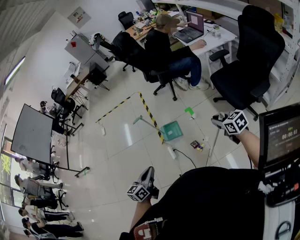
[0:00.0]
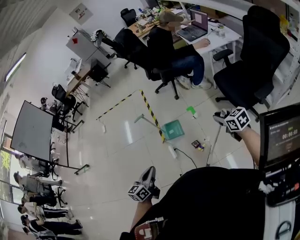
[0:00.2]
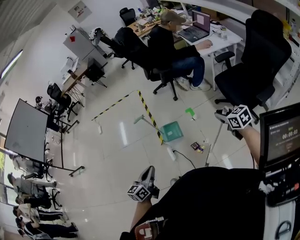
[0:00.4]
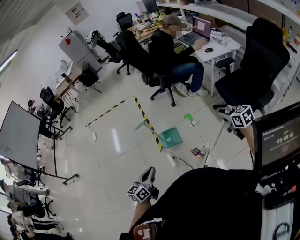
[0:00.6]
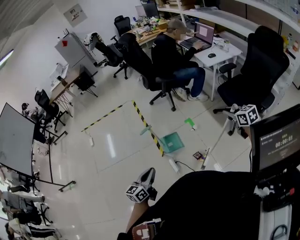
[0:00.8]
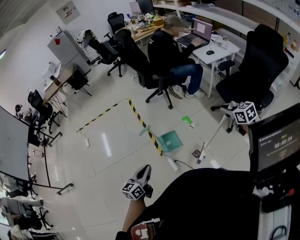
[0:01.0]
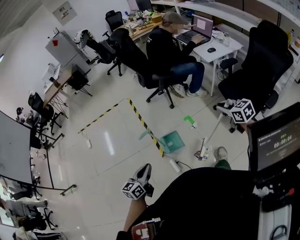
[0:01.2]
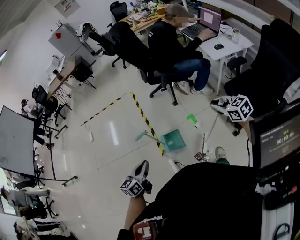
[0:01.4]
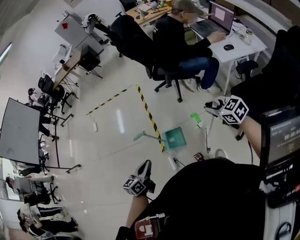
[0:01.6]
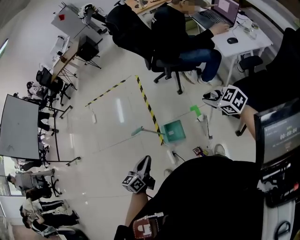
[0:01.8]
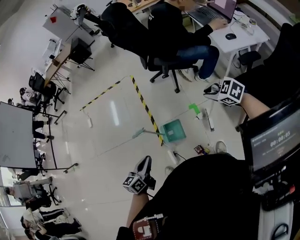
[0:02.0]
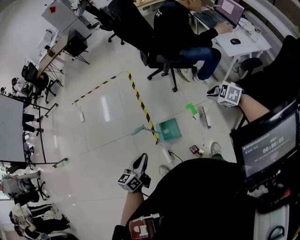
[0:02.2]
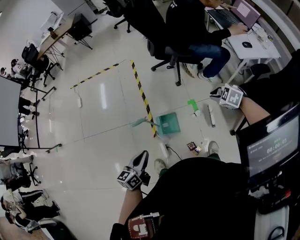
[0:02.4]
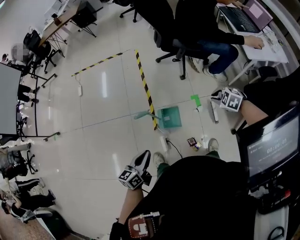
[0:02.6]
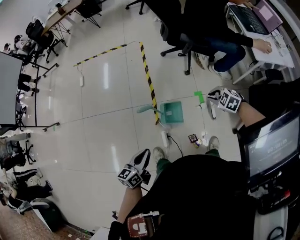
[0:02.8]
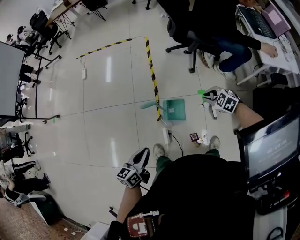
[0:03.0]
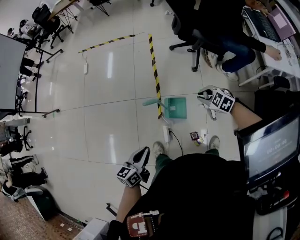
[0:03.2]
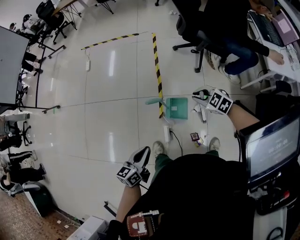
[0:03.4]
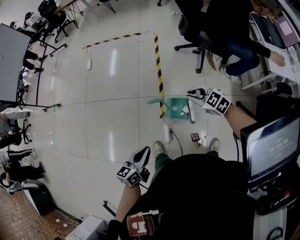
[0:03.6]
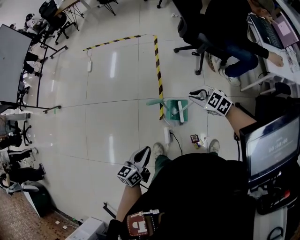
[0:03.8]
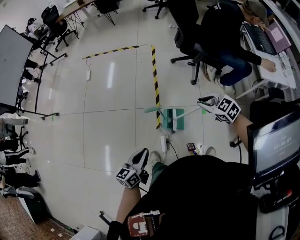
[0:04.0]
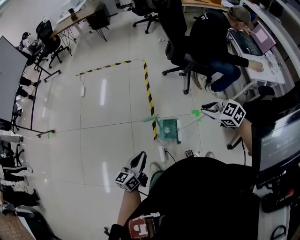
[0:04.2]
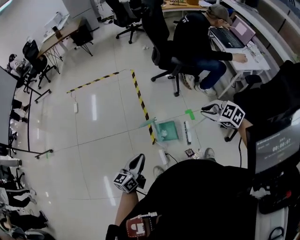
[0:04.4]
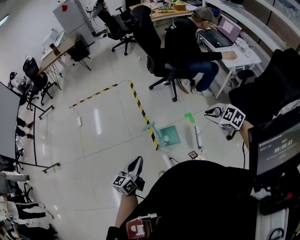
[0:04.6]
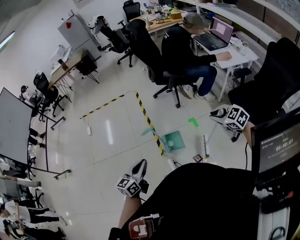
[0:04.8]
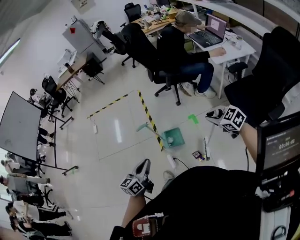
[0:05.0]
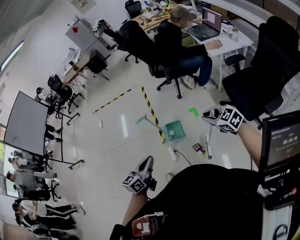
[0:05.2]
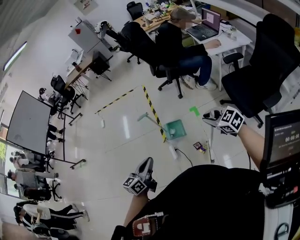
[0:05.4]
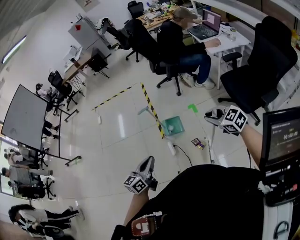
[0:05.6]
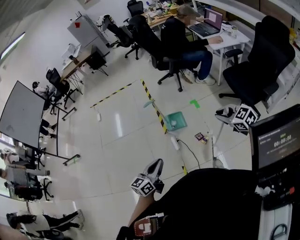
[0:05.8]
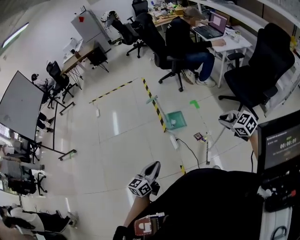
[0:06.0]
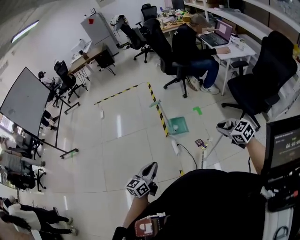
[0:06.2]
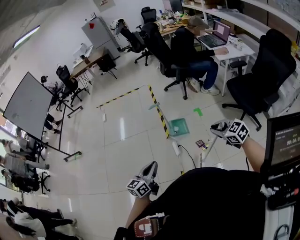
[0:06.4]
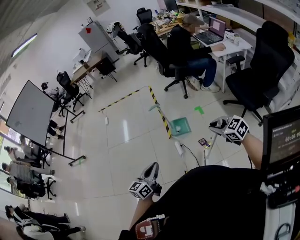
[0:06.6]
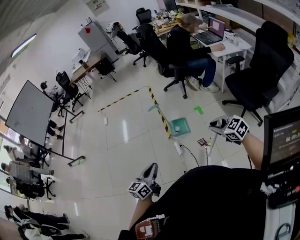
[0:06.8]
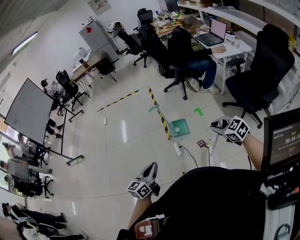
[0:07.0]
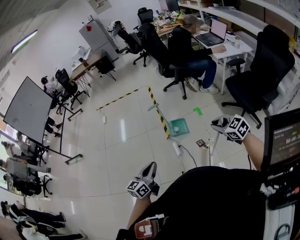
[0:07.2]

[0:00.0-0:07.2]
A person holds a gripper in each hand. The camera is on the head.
0:00.0 to 0:01.4: The right gripper moves forward, roughly 30 cm, while the left gripper goes roughly 35 cm forward and to the left.
0:01.4 to 0:02.8: The left gripper heads downward, covering some 10 cm, and moves roughly 10 cm to the right and comes back; the right gripper is displaced downward, forward and to the left by some 30 cm, and swivels approximately 50 degrees.
0:02.8 to 0:04.4: The right gripper moves upward and to the left, approximately 20 cm; the left gripper moves to the left, some 10 cm.
0:04.4 to 0:05.8: The grippers both shift backward by roughly 40 cm.

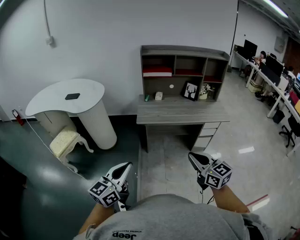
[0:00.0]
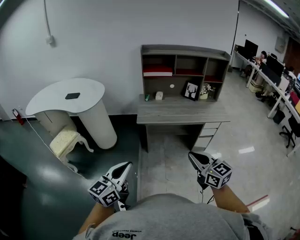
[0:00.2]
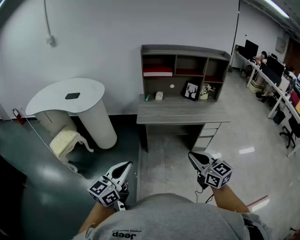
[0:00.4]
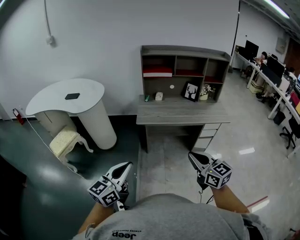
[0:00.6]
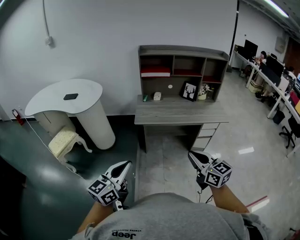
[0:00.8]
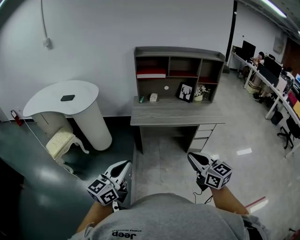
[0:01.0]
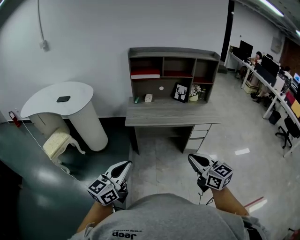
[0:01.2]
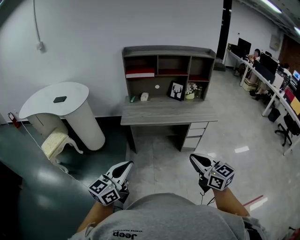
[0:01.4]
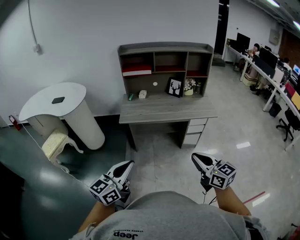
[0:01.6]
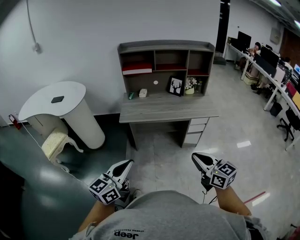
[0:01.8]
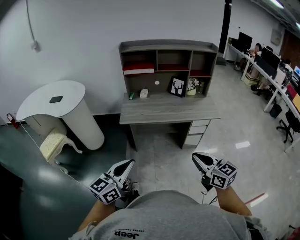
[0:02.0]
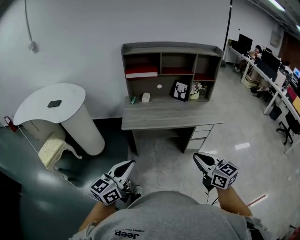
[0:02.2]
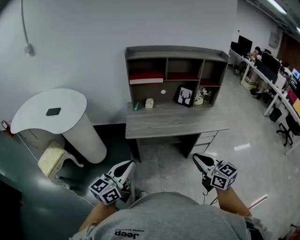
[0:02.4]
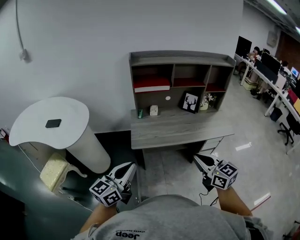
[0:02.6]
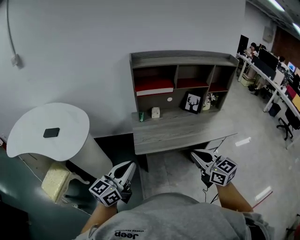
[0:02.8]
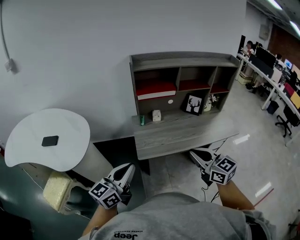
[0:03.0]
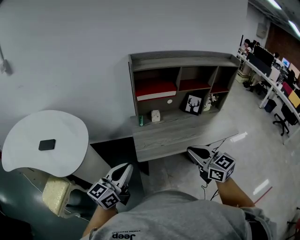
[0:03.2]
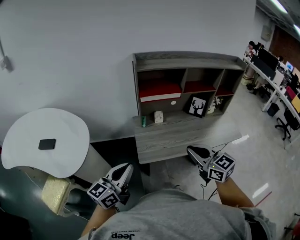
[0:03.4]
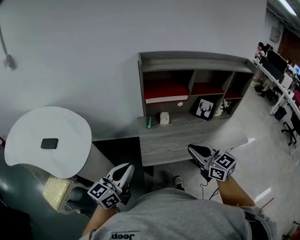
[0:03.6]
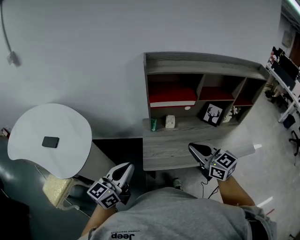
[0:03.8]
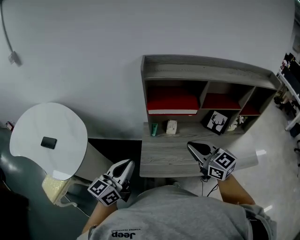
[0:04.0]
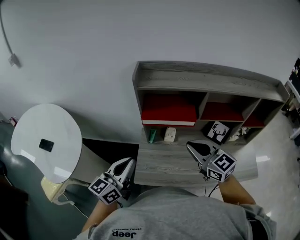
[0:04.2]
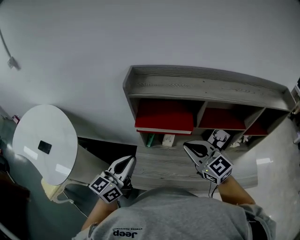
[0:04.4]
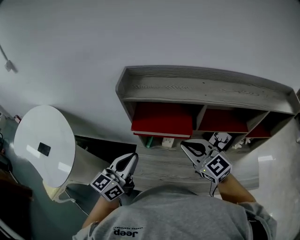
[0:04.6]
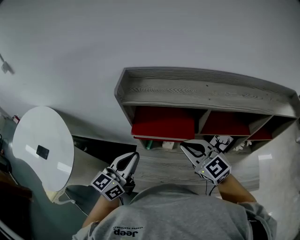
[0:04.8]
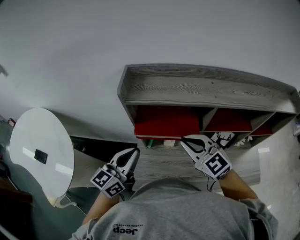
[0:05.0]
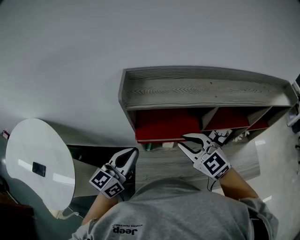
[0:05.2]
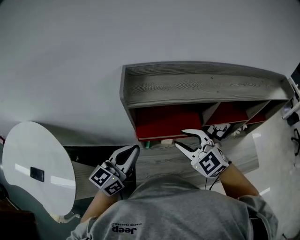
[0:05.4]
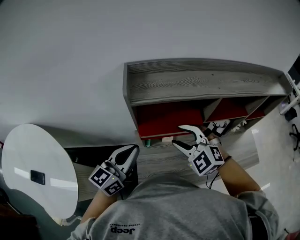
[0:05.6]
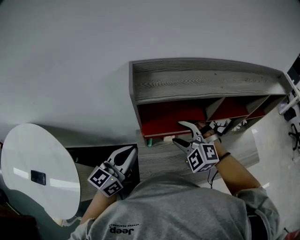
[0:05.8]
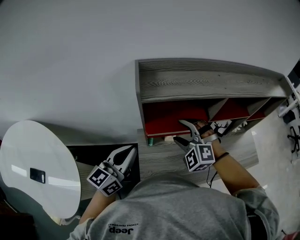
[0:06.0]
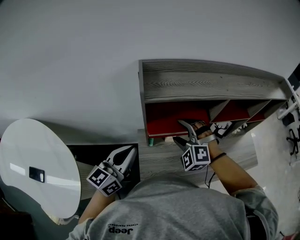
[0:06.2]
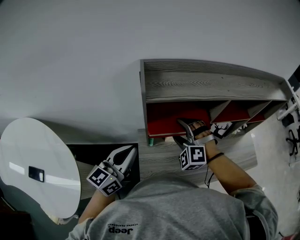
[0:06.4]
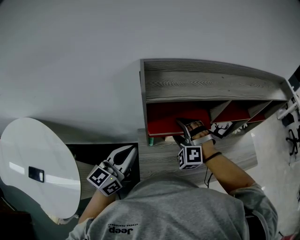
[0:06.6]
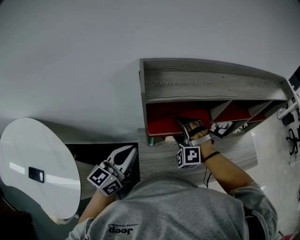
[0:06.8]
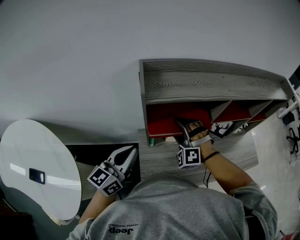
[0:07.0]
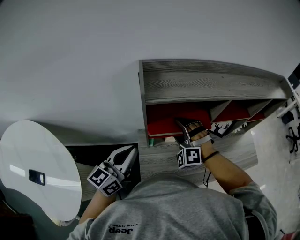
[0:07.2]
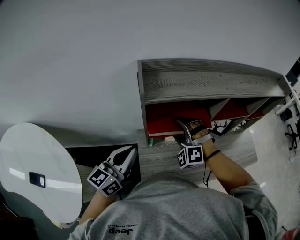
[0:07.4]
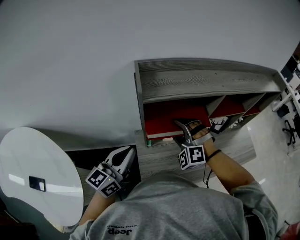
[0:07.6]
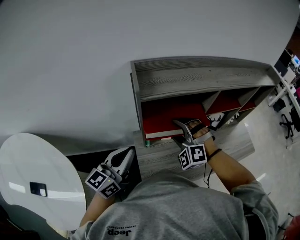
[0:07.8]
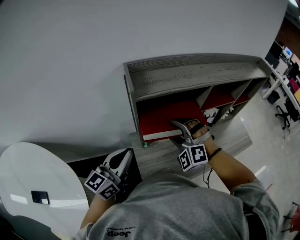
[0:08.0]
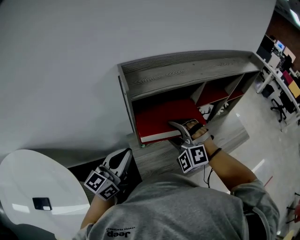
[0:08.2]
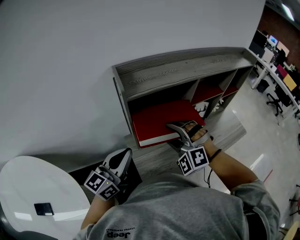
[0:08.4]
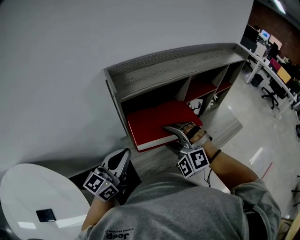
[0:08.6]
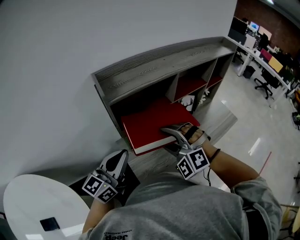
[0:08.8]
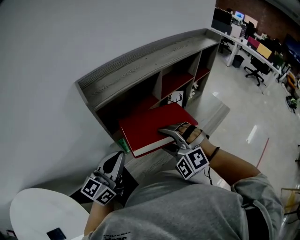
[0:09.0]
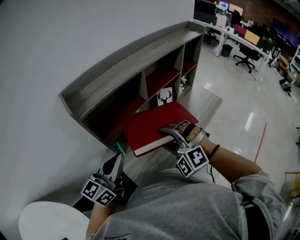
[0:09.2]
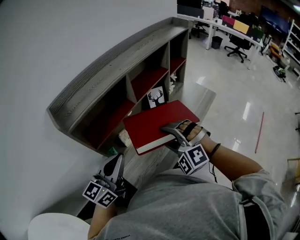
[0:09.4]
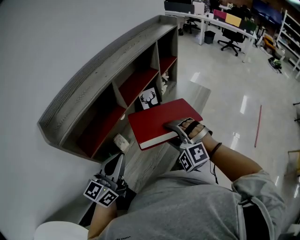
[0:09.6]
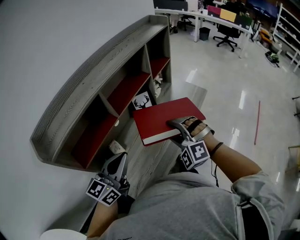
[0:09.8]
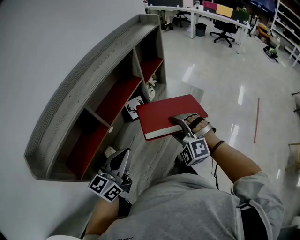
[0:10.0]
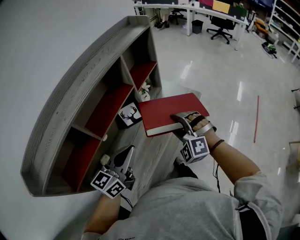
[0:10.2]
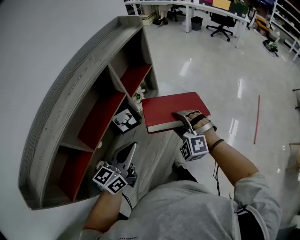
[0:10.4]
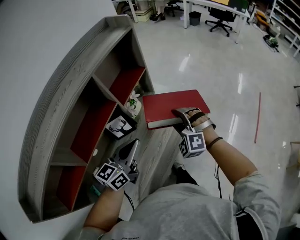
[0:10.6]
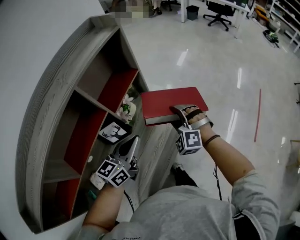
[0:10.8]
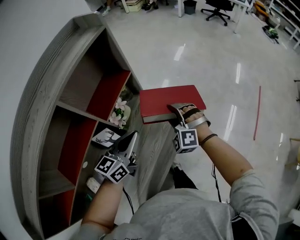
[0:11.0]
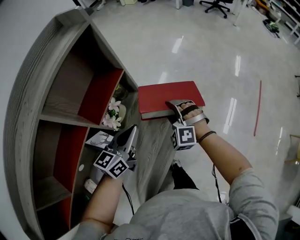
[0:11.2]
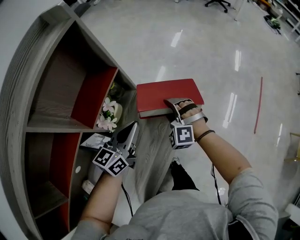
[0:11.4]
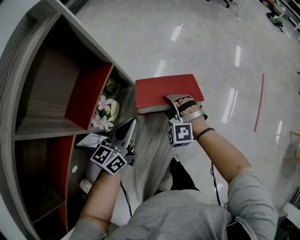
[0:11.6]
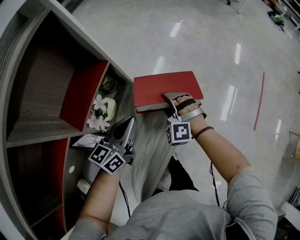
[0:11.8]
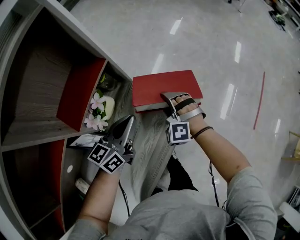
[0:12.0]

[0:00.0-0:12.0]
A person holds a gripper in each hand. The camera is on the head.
0:00.0 to 0:01.6: The two grippers go about 15 cm to the right.
0:01.6 to 0:03.0: The pair of grippers is taken forward and to the left, approximately 40 cm.
0:03.0 to 0:04.4: Both grippers travel together forward, some 35 cm. The right gripper rotates some 20 degrees.
0:04.4 to 0:06.0: The left gripper is displaced forward and to the left by roughly 10 cm. Meanwhile the right gripper heads to the left, forward and downward, covering roughly 15 cm, rotates roughly 60 degrees, and opens its fingers.
0:07.6 to 0:09.0: The right gripper goes roughly 15 cm backward, to the right and upward, while the left gripper moves to the right, some 5 cm, and swivels approximately 20 degrees.
0:09.0 to 0:10.4: The pair of grippers is taken some 40 cm. The right gripper swivels roughly 40 degrees; the left gripper rotates approximately 30 degrees.
0:10.4 to 0:12.0: The two grippers go some 35 cm forward and downward.

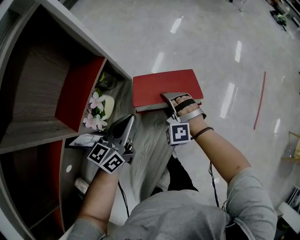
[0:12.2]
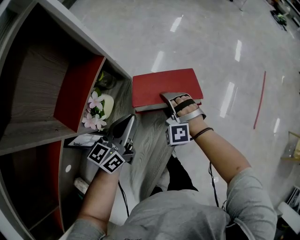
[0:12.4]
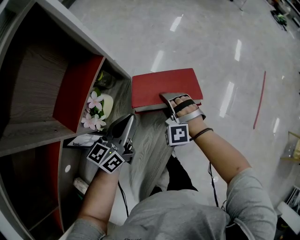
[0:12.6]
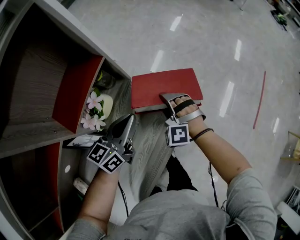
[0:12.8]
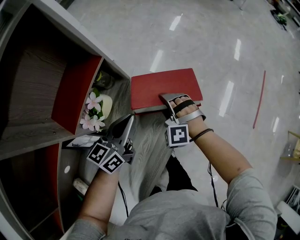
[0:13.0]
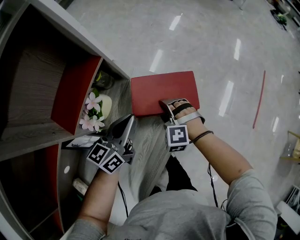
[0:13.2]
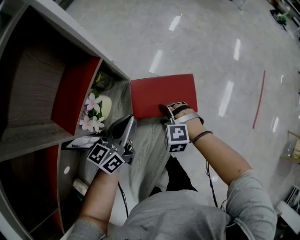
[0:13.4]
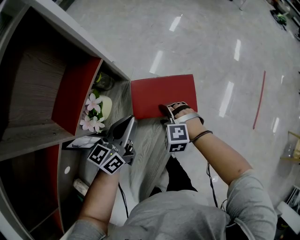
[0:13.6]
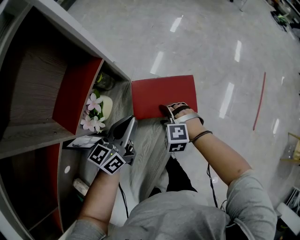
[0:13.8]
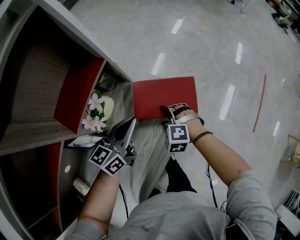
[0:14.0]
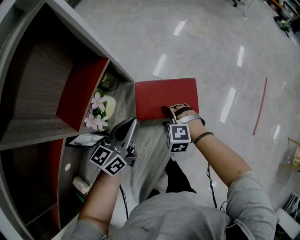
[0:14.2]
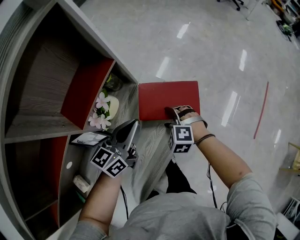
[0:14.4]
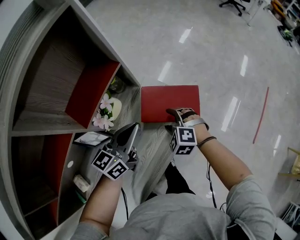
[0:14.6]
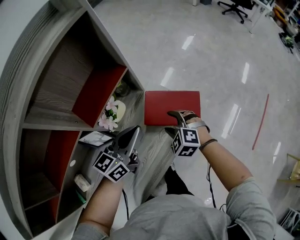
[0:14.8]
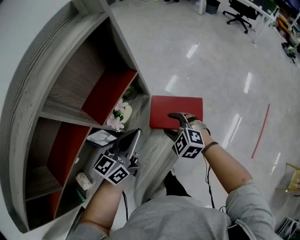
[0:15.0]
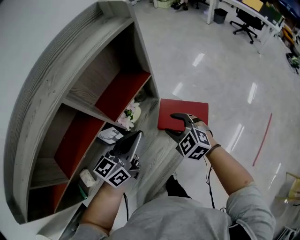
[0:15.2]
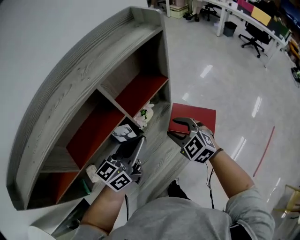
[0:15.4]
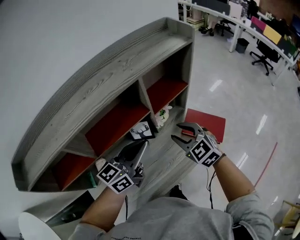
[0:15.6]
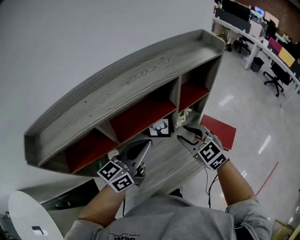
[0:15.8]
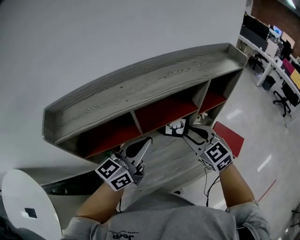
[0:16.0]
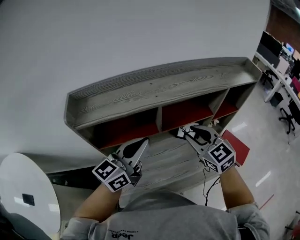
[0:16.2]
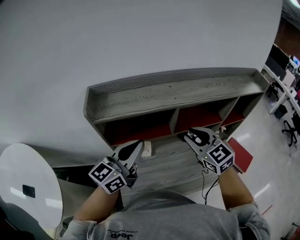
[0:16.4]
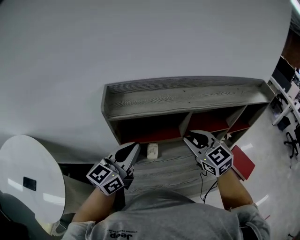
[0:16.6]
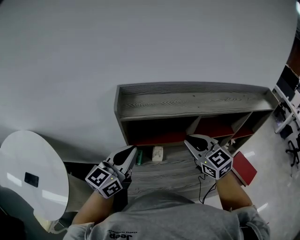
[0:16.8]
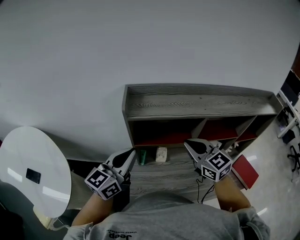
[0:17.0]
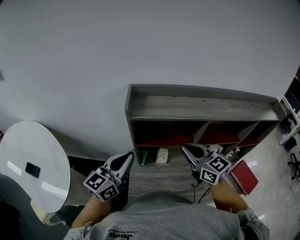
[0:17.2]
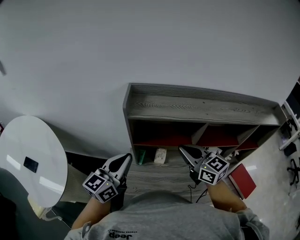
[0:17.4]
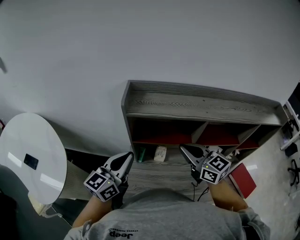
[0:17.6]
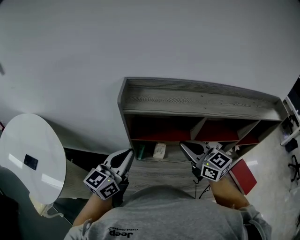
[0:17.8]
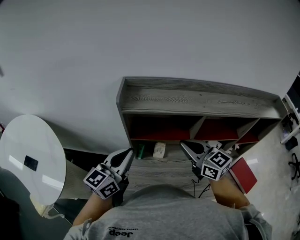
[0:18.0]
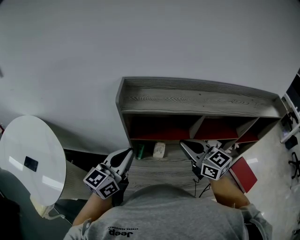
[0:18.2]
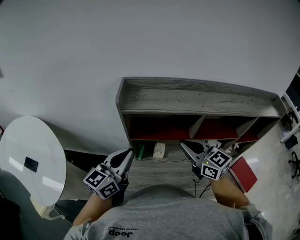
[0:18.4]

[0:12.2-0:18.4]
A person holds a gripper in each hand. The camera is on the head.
0:12.2 to 0:13.8: The right gripper travels backward by approximately 5 cm, and swivels some 30 degrees.
0:13.8 to 0:15.4: The left gripper heads upward, to the left and backward, covering approximately 20 cm. Meanwhile the right gripper is displaced upward by about 25 cm, and changes its angle by about 30 degrees.
0:15.4 to 0:16.8: Both grippers are carried roughly 50 cm. The right gripper rotates approximately 40 degrees, and closes up; the left gripper changes its angle by roughly 40 degrees.
